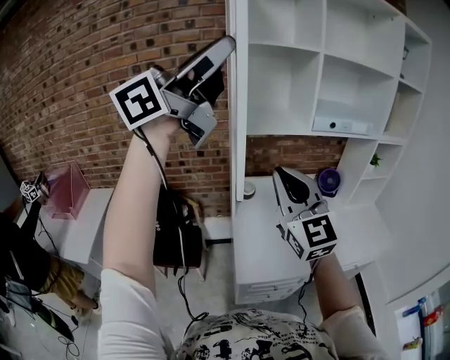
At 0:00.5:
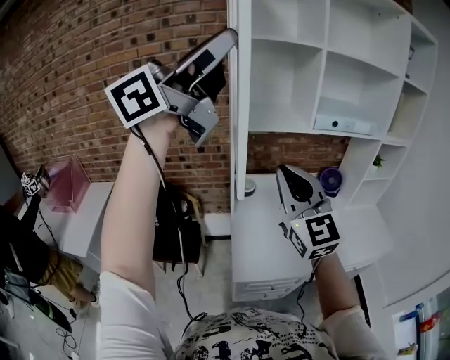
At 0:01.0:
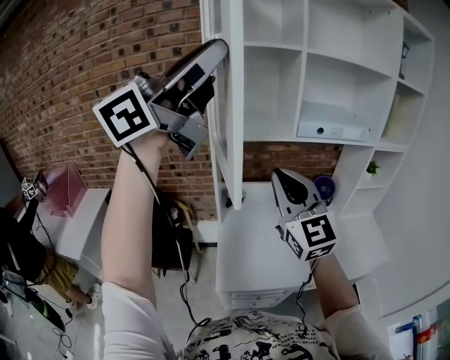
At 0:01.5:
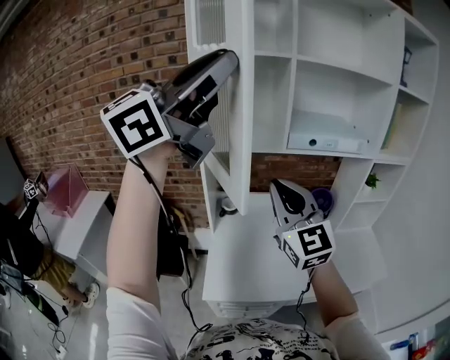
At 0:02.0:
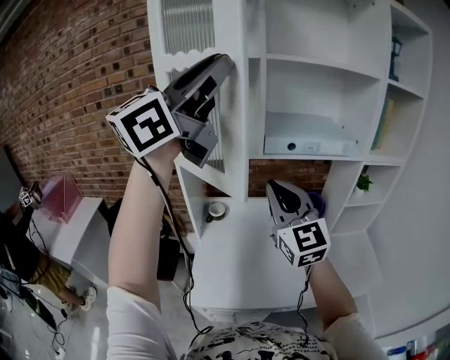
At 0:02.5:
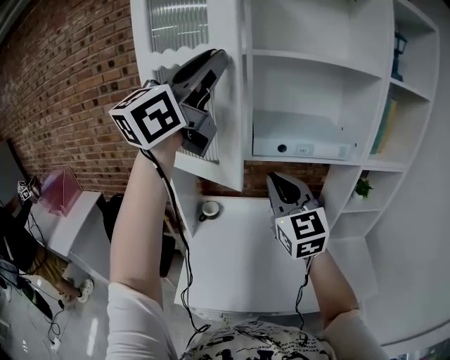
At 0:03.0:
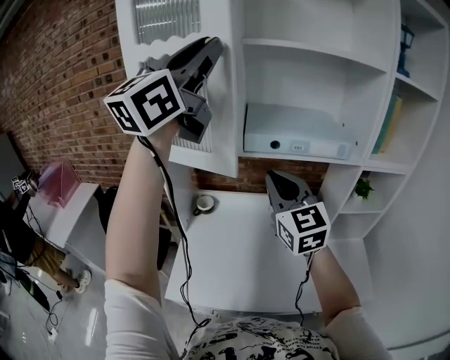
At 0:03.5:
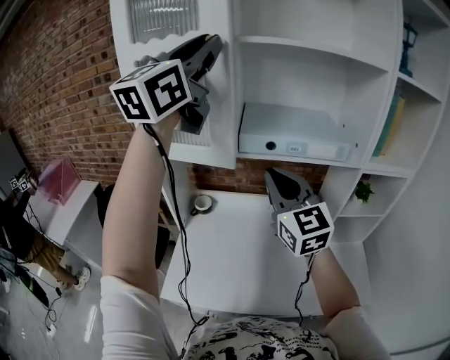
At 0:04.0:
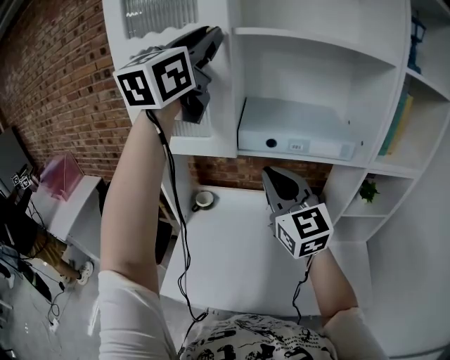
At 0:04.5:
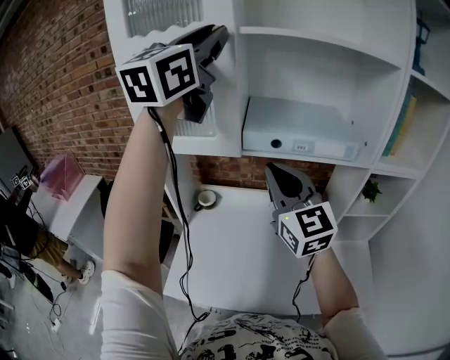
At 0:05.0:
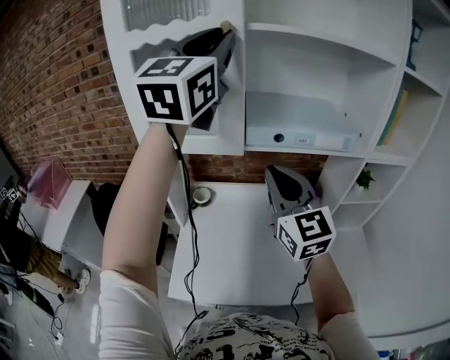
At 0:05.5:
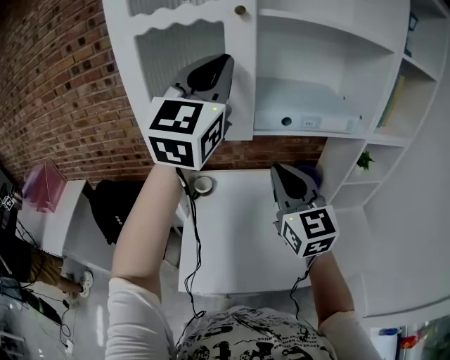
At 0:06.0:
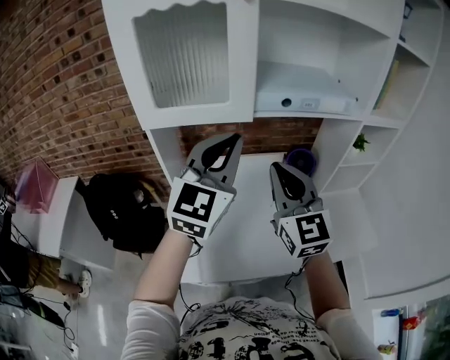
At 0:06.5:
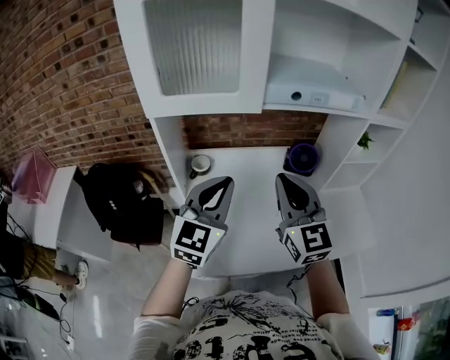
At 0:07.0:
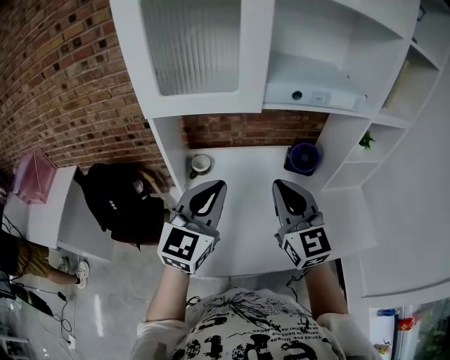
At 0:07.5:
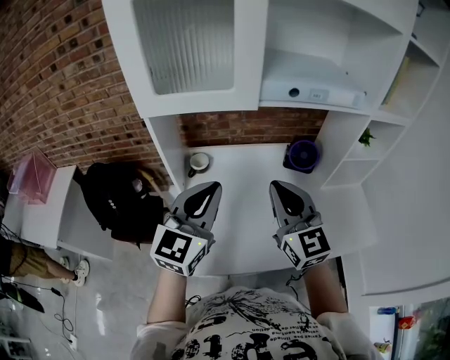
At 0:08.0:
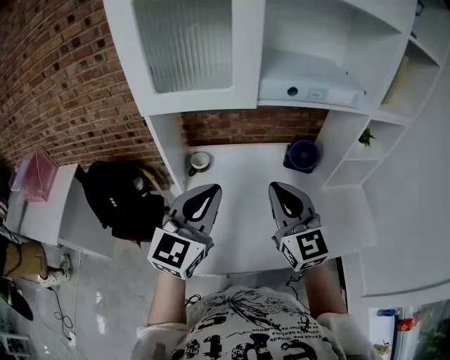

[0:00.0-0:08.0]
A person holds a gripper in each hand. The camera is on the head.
0:00.0 to 0:02.0: Both grippers move to the right and forward, about 25 cm. The left gripper swivels roughly 30 degrees.
0:02.0 to 0:04.0: The two grippers go some 15 cm forward and to the right. The left gripper rotates approximately 30 degrees.
0:04.0 to 0:06.0: The left gripper shifts some 30 cm downward, while the right gripper goes roughly 10 cm to the left, backward and downward.
0:06.0 to 0:08.0: The left gripper shifts some 15 cm downward and backward; the right gripper heads downward, covering about 5 cm.

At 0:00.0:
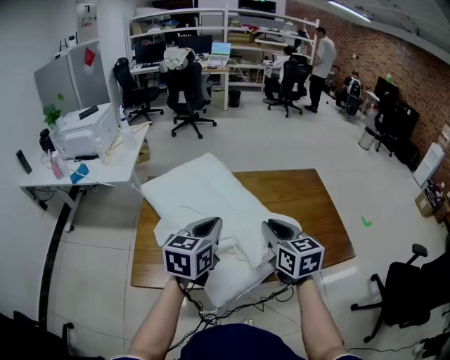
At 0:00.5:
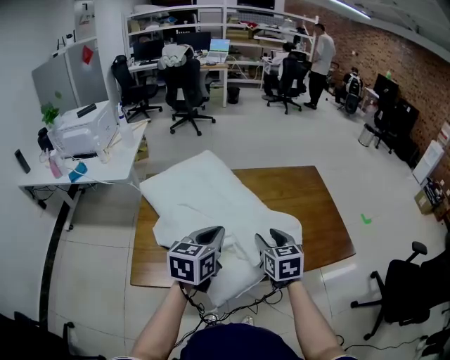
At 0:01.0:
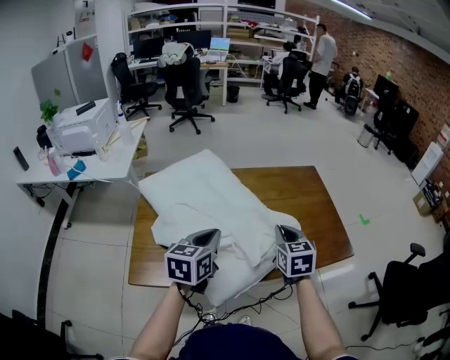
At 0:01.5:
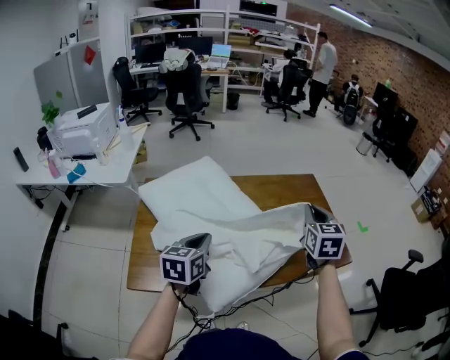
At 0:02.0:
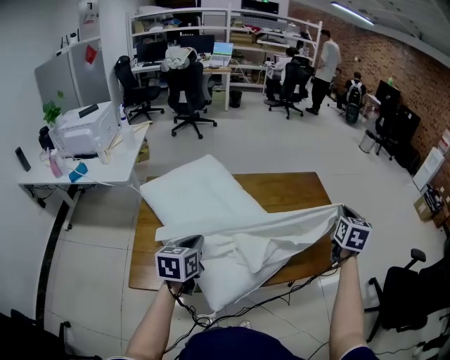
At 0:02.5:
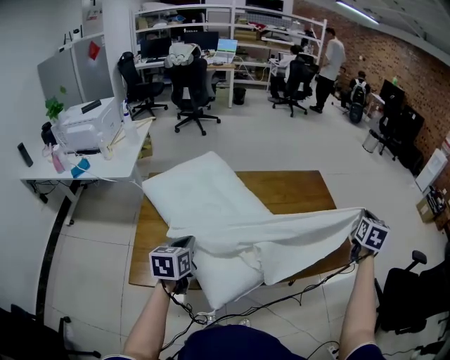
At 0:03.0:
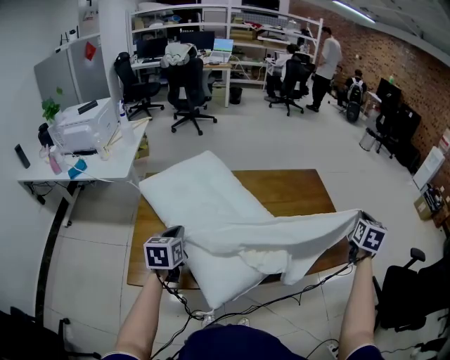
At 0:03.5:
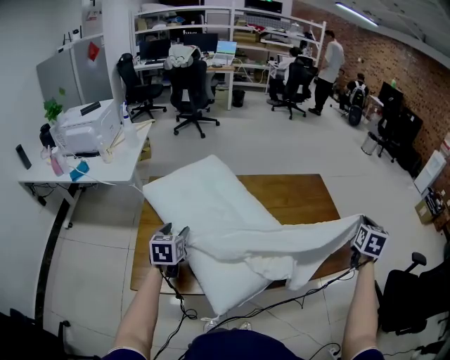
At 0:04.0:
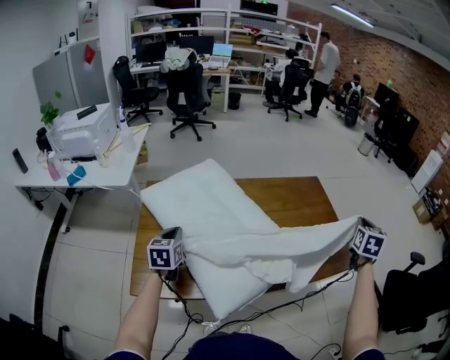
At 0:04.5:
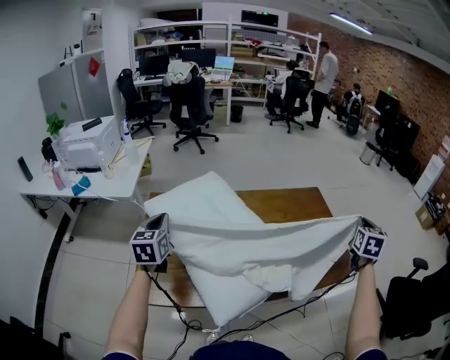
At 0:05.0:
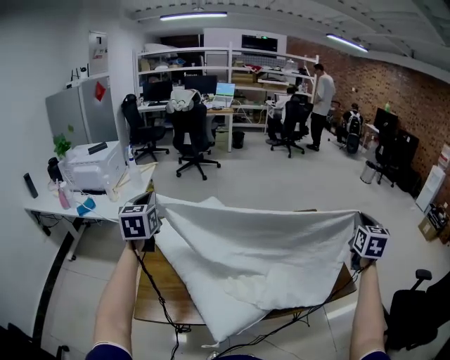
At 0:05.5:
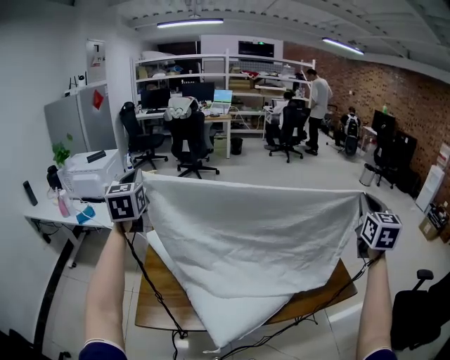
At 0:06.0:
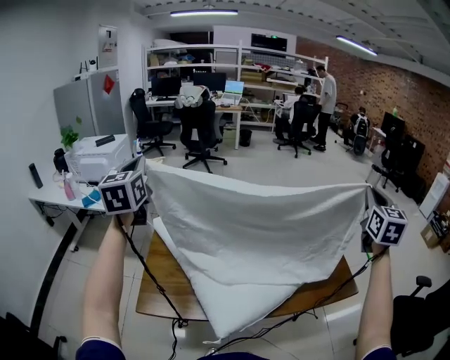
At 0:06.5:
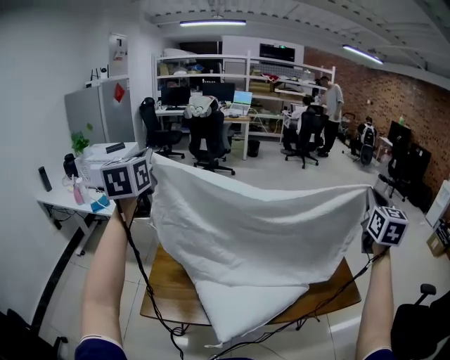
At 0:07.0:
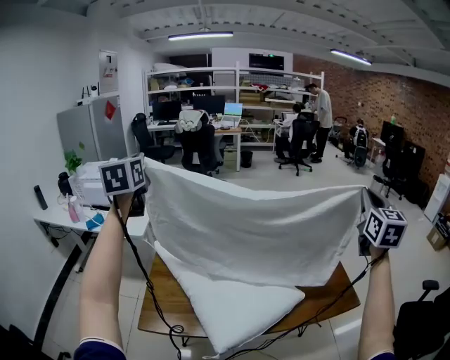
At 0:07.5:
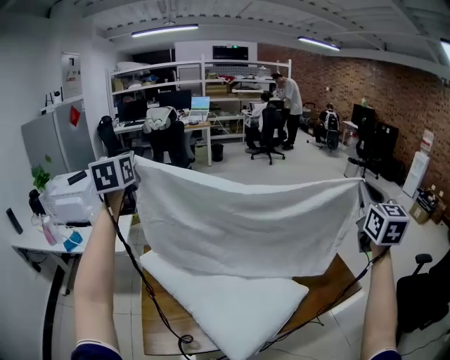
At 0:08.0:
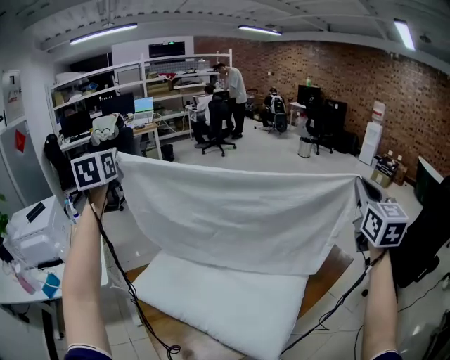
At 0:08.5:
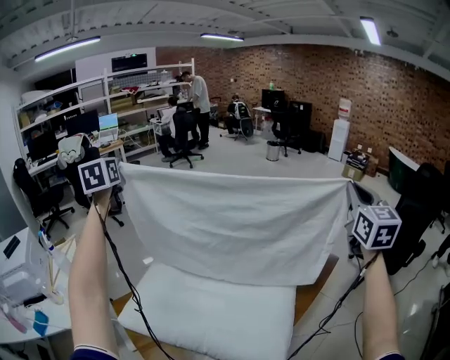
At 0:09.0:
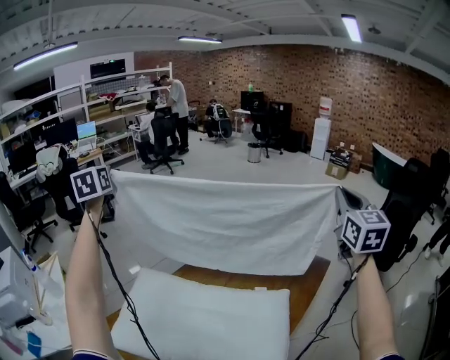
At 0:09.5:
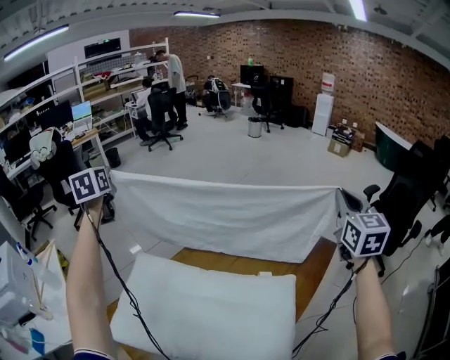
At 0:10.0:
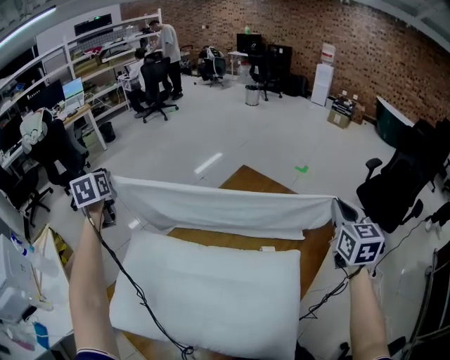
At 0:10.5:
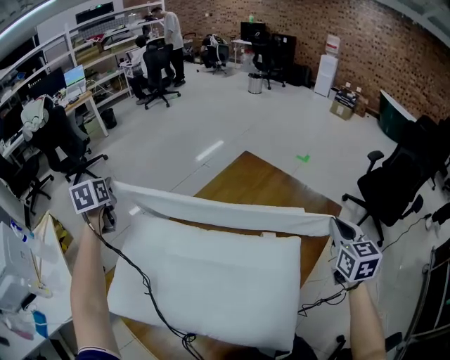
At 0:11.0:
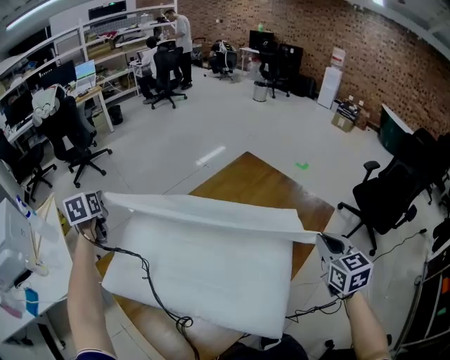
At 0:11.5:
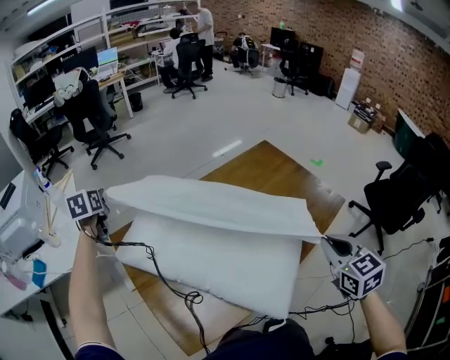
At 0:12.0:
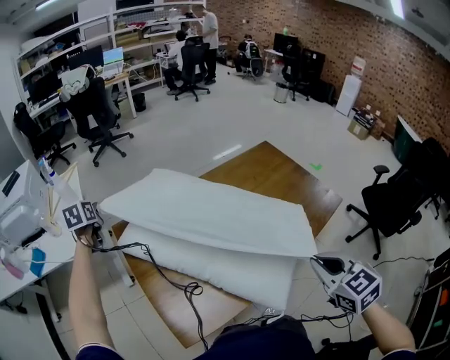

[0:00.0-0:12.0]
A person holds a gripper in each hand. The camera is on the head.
0:00.0 to 0:02.0: The left gripper travels downward and to the left by about 10 cm, while the right gripper travels to the right and forward by some 30 cm, swivels some 40 degrees, and opens, then closes once more.
0:02.0 to 0:04.0: The right gripper shifts some 10 cm to the right. The left gripper travels to the left by approximately 10 cm, and opens, then closes once more.
0:04.0 to 0:06.0: The left gripper travels upward by some 35 cm, and angles its fingers upward, by roughly 30 degrees. The right gripper is displaced upward by approximately 25 cm, and rotates approximately 30 degrees.
0:06.0 to 0:08.0: The right gripper travels backward by roughly 10 cm. Meanwhile the left gripper heads forward, covering some 25 cm, and changes its angle by approximately 20 degrees.
0:08.0 to 0:10.0: The right gripper moves downward, about 20 cm, and changes its angle by some 20 degrees. Meanwhile the left gripper moves downward and forward, roughly 35 cm, and changes its angle by roughly 30 degrees.
0:10.0 to 0:12.0: The left gripper shifts by about 40 cm, and rotates some 20 degrees. The right gripper moves about 30 cm, and turns by approximately 50 degrees.

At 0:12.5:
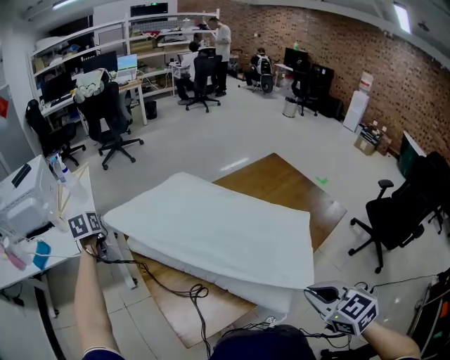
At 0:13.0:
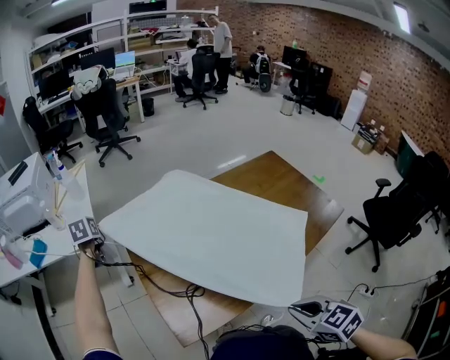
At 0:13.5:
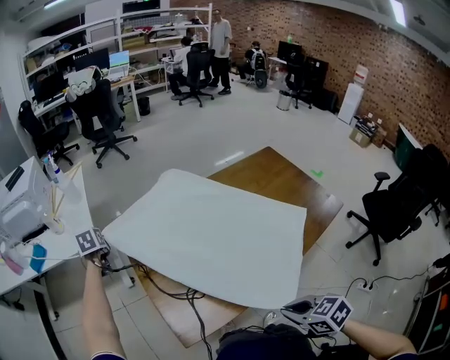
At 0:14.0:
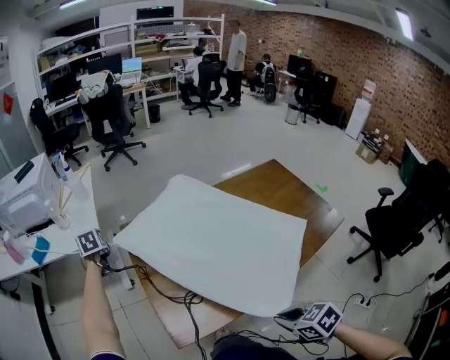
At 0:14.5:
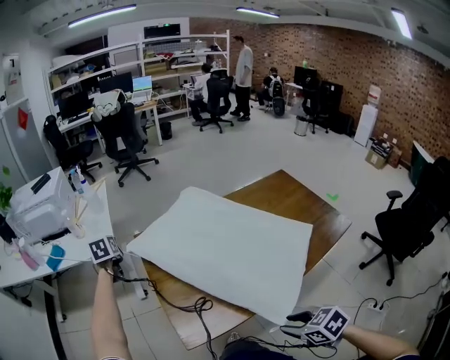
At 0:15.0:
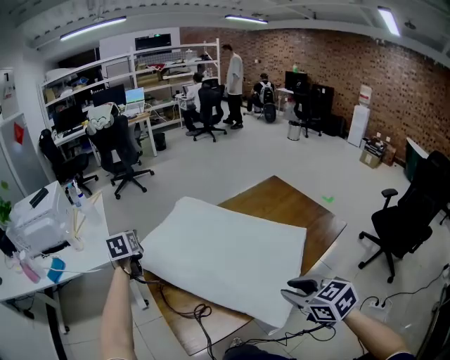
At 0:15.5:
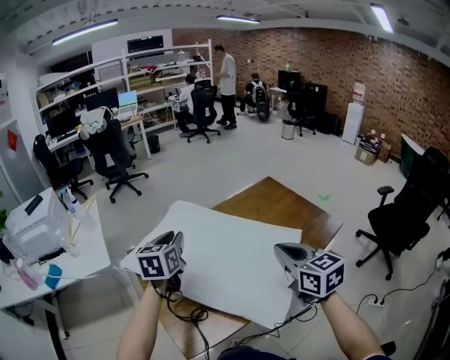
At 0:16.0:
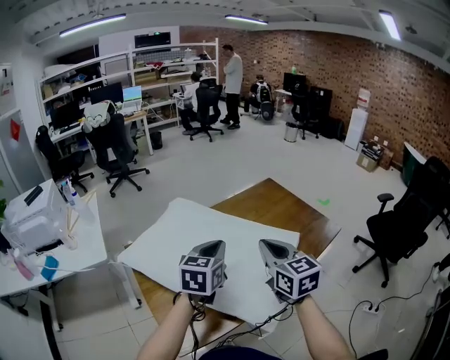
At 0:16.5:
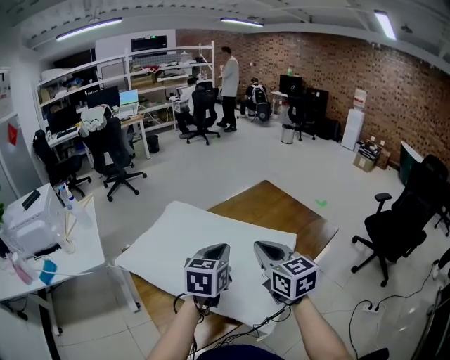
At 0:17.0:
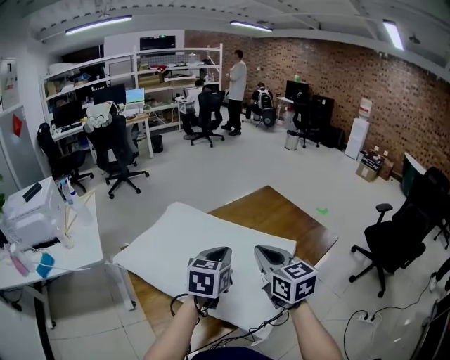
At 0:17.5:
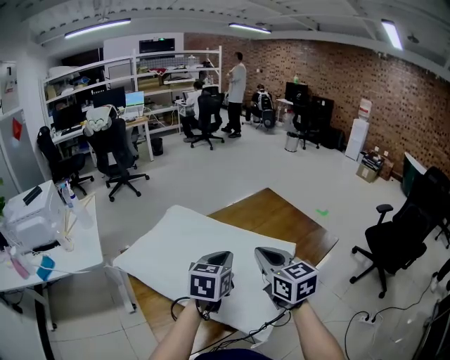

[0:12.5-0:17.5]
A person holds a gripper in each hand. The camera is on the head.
0:12.5 to 0:15.0: The right gripper travels downward and back again, some 10 cm each way, and opens its fingers. Meanwhile the left gripper shifts by some 10 cm, and opens.
0:15.0 to 0:17.5: The left gripper ends up roughly 40 cm from where it was, swivels roughly 40 degrees, and closes its fingers, while the right gripper moves some 15 cm, swivels approximately 30 degrees, and closes up.

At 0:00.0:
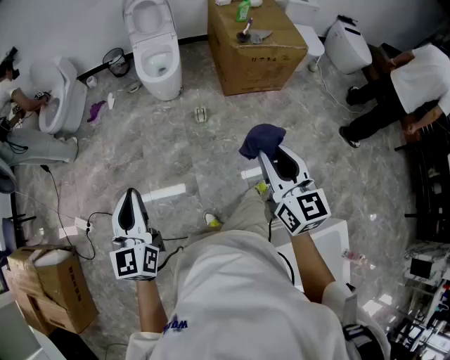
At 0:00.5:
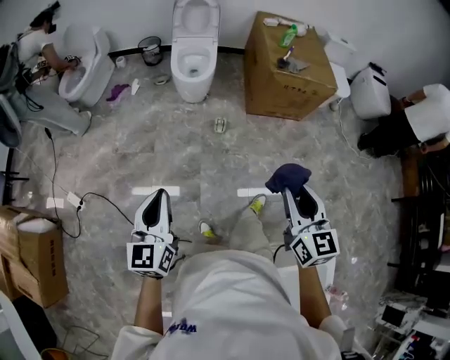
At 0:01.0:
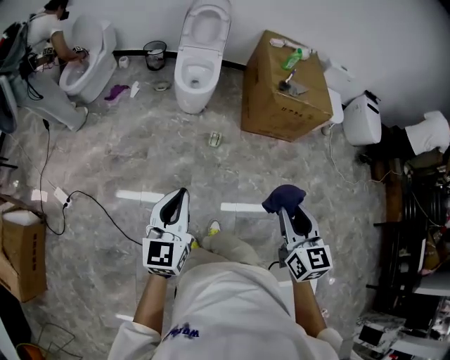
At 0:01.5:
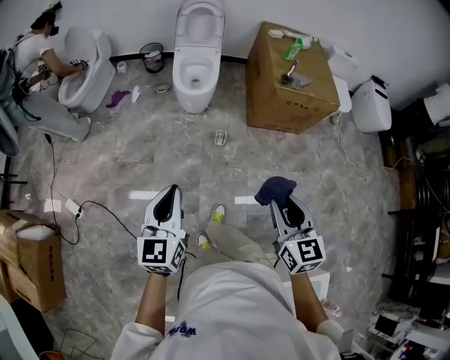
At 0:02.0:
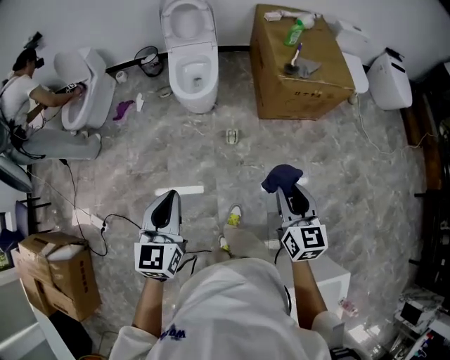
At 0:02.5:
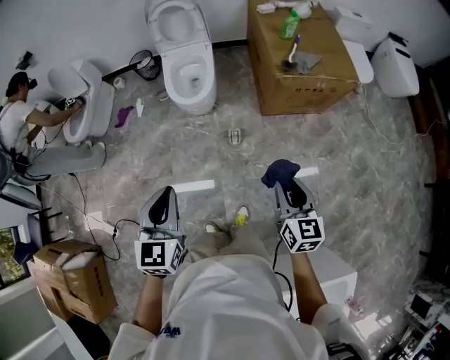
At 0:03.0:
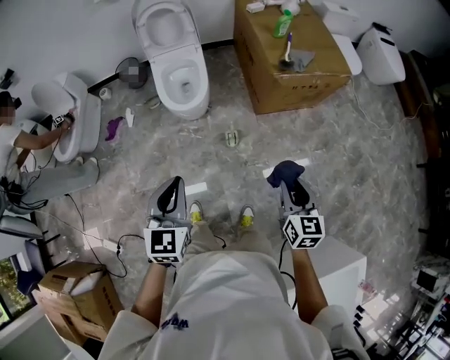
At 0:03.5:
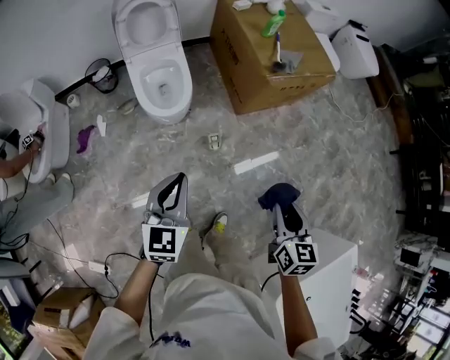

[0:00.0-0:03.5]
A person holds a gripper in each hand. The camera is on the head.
0:00.0 to 0:02.0: The left gripper heads forward, covering roughly 20 cm; the right gripper moves forward and downward, roughly 20 cm.
0:02.0 to 0:03.5: The right gripper shifts roughly 15 cm to the left, forward and downward, and swivels some 30 degrees; the left gripper goes some 25 cm forward and to the left, and rotates roughly 20 degrees.
